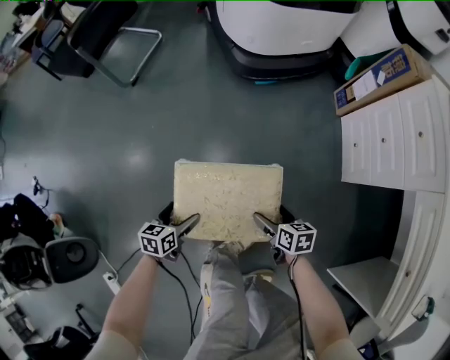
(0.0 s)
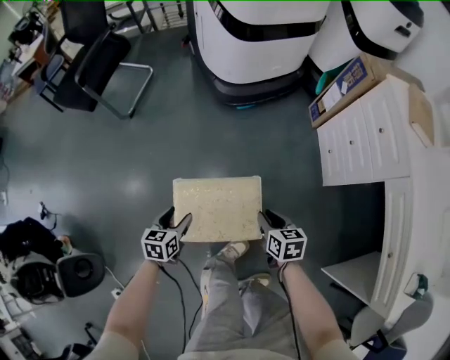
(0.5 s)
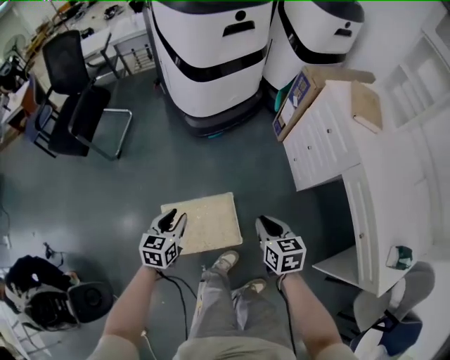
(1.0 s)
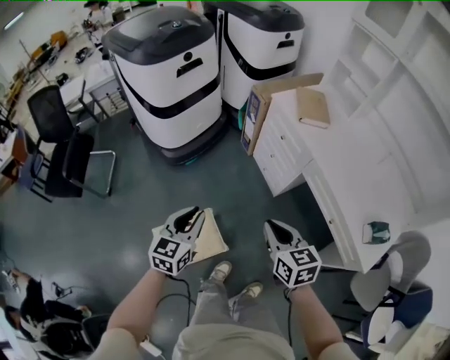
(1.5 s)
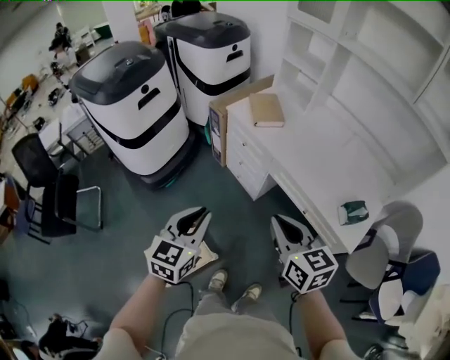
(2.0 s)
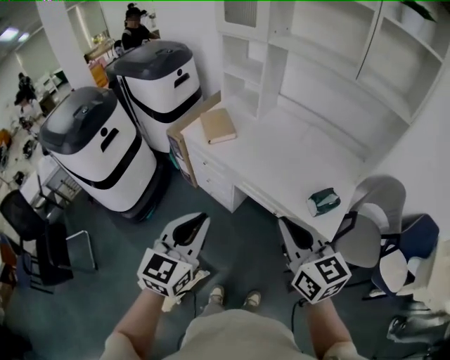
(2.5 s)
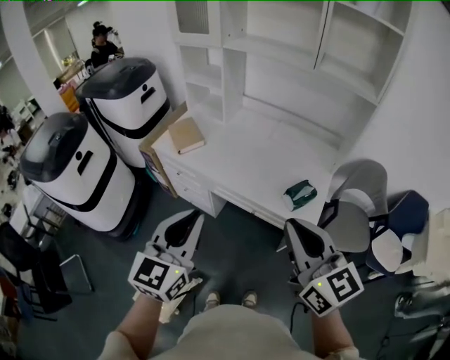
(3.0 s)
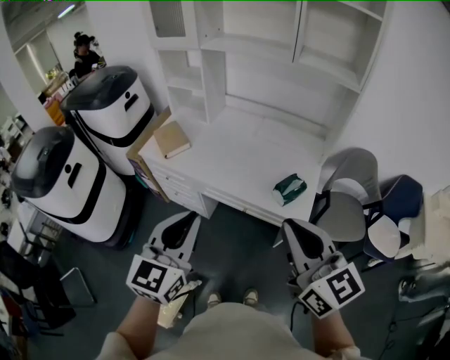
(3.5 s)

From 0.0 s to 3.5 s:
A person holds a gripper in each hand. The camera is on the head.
From 0.0 s to 2.0 s: Both grippers move upward, some 70 cm. The right gripper tips its fingers upward by approximately 30 degrees, and closes up, while the left gripper turns by some 60 degrees, and closes its fingers.
From 2.0 s to 3.5 s: The grippers both shift to the right and upward by approximately 30 cm. The right gripper swivels some 30 degrees, while the left gripper turns by roughly 30 degrees.

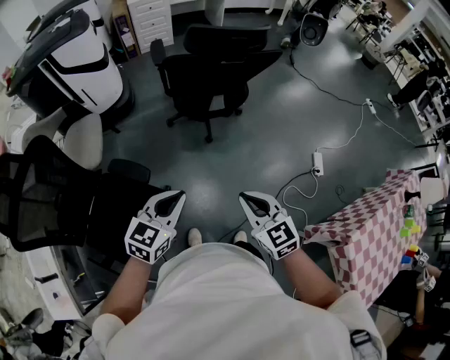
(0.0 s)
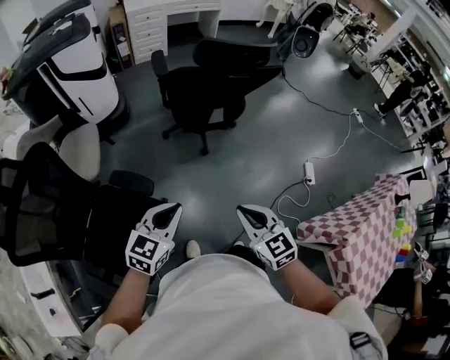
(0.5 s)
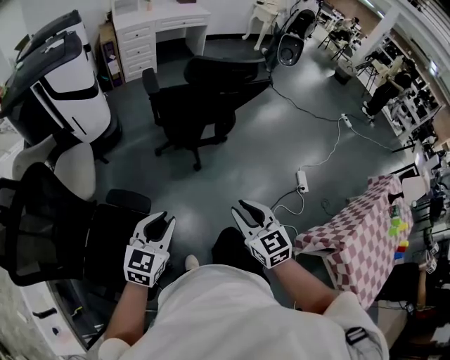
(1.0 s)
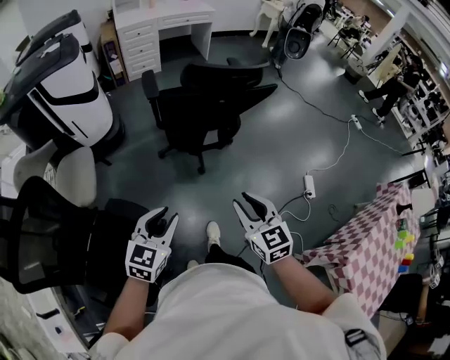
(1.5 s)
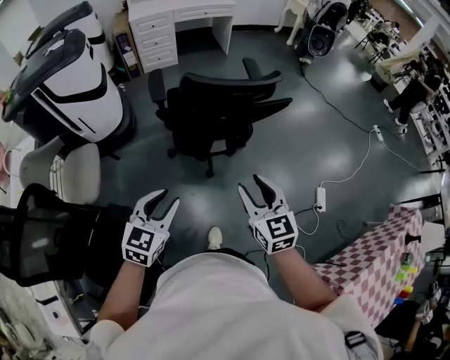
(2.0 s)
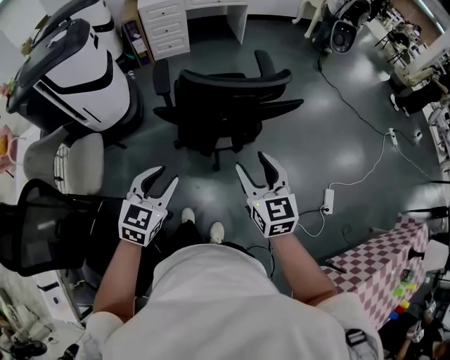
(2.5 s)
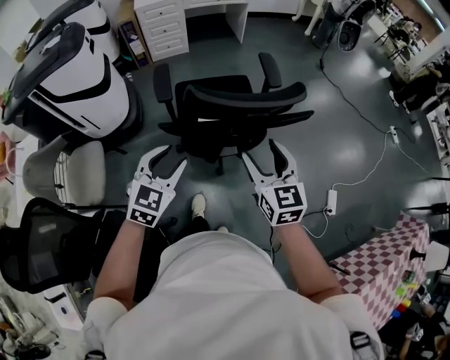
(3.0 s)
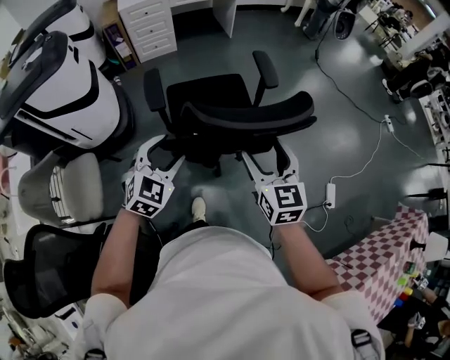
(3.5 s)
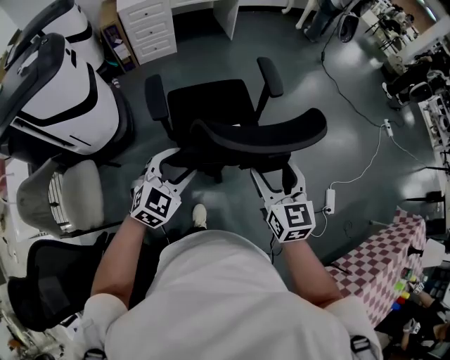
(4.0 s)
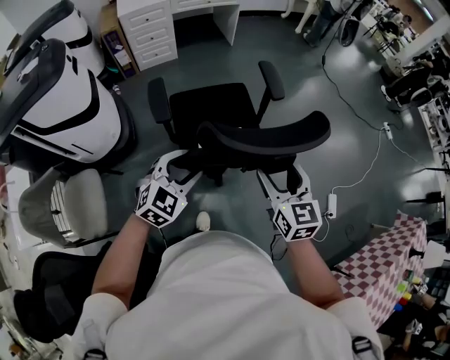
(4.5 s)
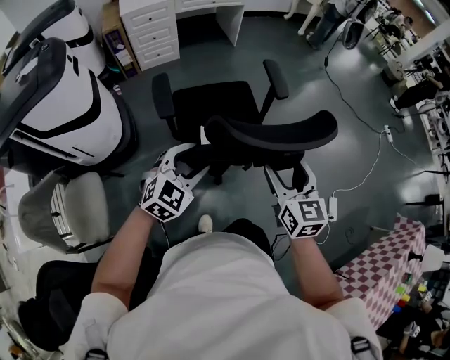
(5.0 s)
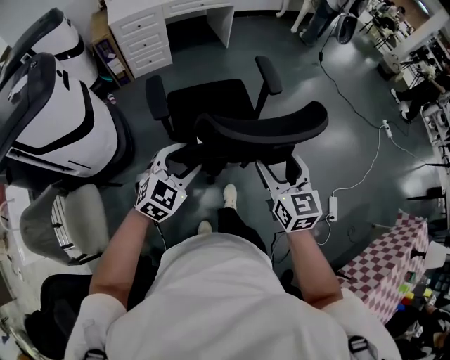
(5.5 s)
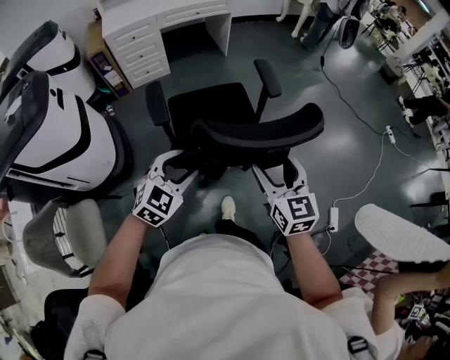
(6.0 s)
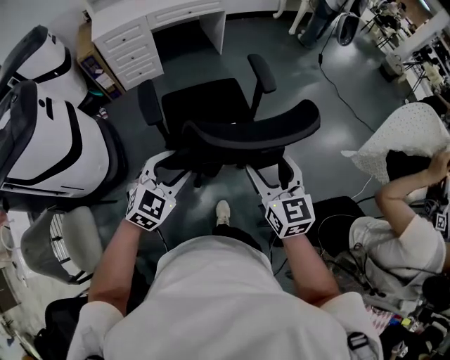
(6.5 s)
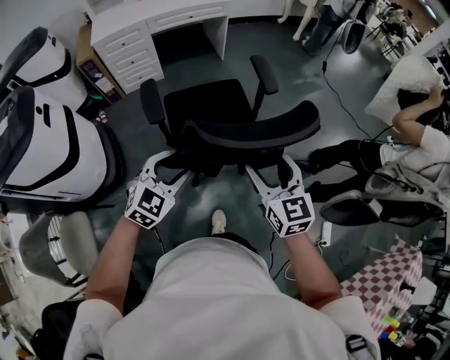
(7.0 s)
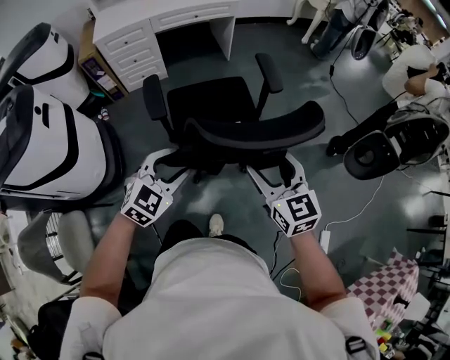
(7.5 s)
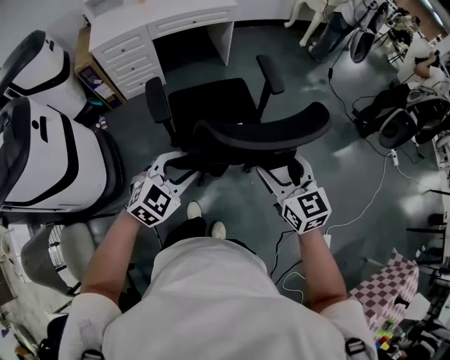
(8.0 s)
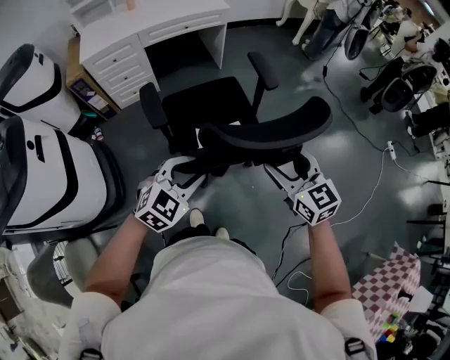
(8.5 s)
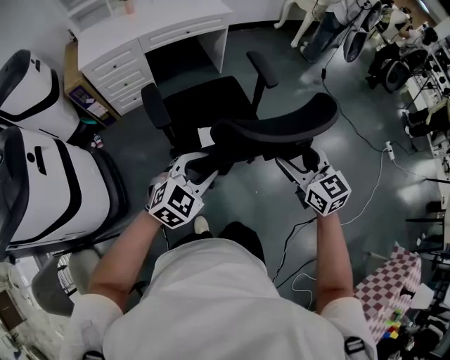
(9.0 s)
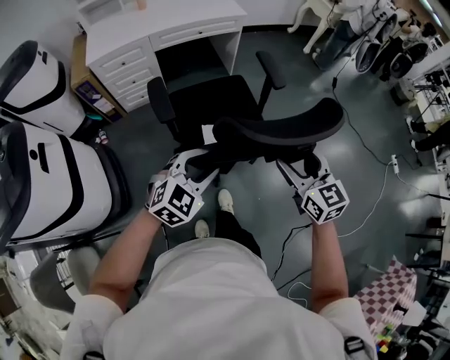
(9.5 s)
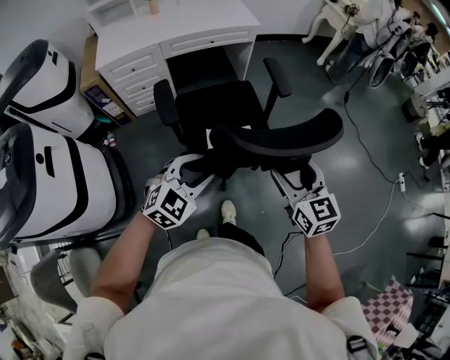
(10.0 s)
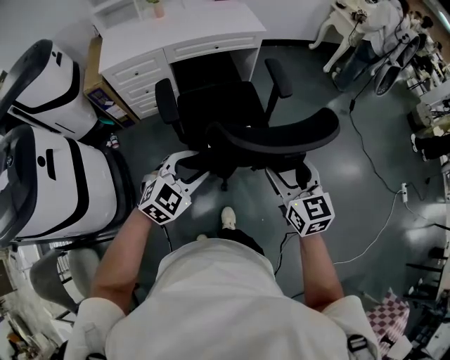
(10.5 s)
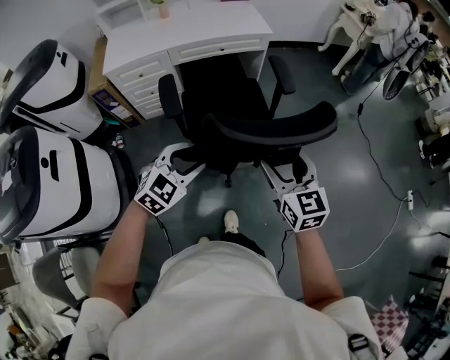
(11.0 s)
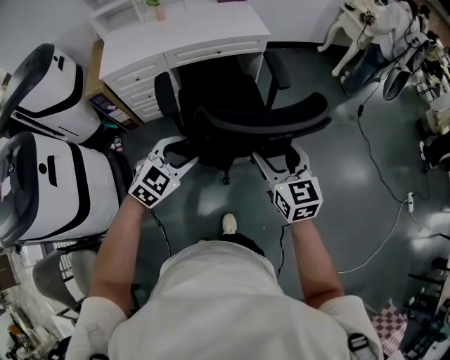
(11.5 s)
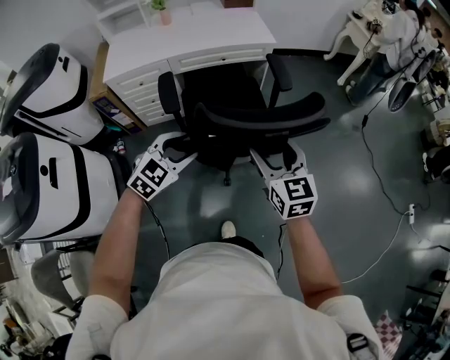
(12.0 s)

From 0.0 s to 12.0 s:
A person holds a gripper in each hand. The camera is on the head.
From 0.0 s to 2.0 s: The two grippers go some 25 cm forward. The left gripper opens; the right gripper opens its fingers.
From 2.0 s to 4.0 s: Both grippers move forward, approximately 25 cm. The right gripper opens; the left gripper swivels about 30 degrees, and opens its fingers.
From 4.0 s to 6.0 s: The two grippers go roughly 20 cm forward.
From 6.0 s to 8.0 s: Both grippers travel together forward, some 20 cm.
From 8.0 s to 10.0 s: The two grippers go approximately 20 cm forward.
From 10.0 s to 12.0 s: Both grippers travel together forward, roughly 20 cm.

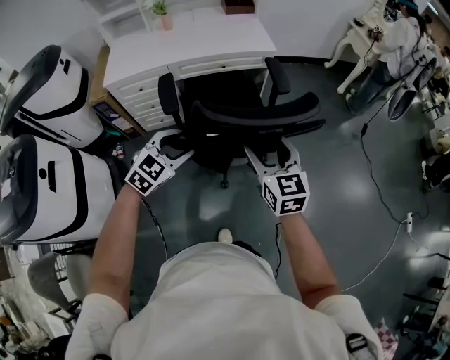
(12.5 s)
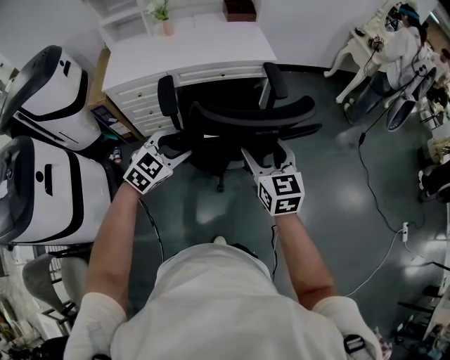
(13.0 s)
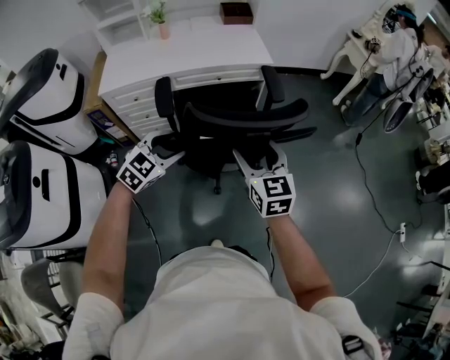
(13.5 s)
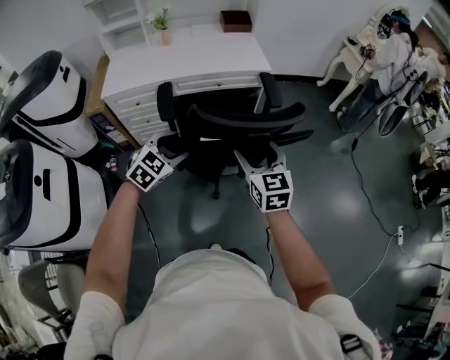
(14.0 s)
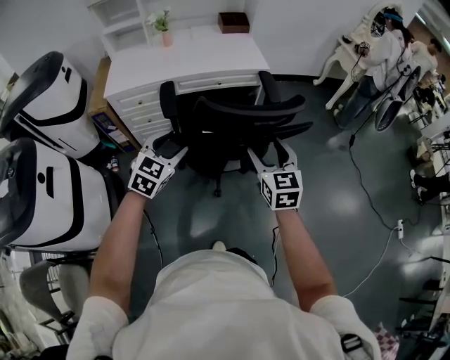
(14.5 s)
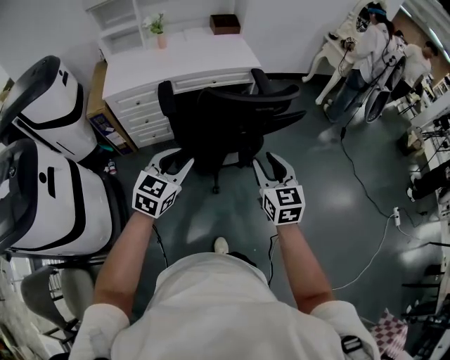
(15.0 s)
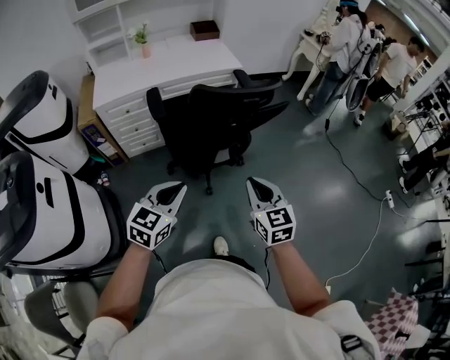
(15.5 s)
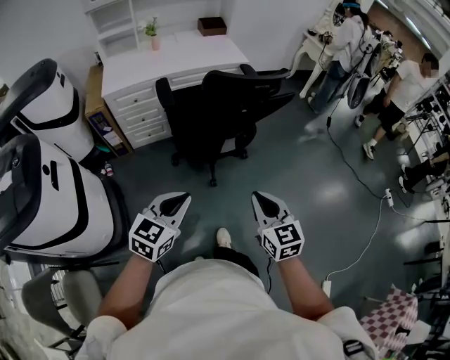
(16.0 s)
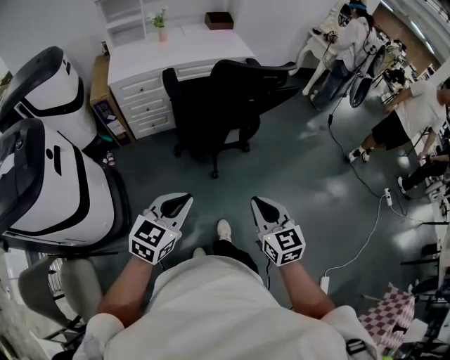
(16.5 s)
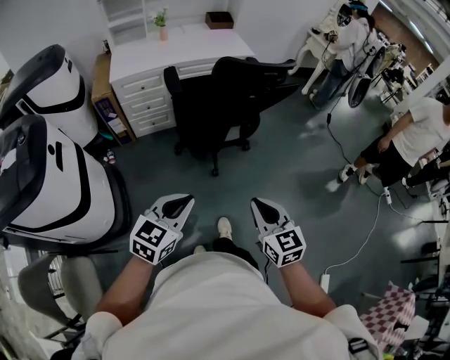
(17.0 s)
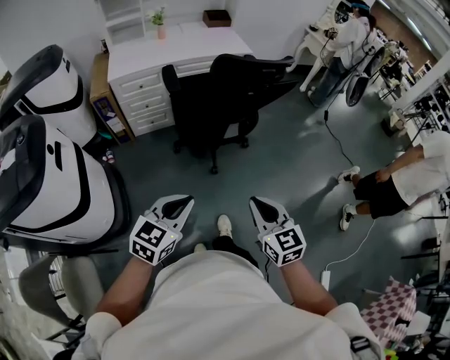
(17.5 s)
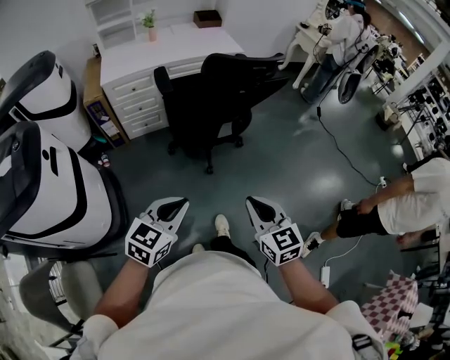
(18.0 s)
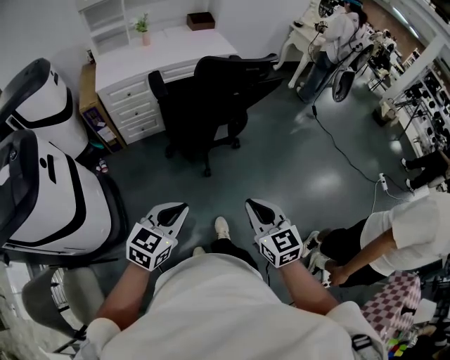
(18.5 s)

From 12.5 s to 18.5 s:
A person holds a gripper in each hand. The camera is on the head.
From 12.5 s to 14.5 s: The left gripper shifts by some 5 cm.
From 14.5 s to 16.5 s: Both grippers move backward, some 35 cm. The left gripper changes its angle by some 20 degrees, and closes up. The right gripper closes up.
From 16.5 s to 18.5 s: The grippers stay close to where they were, moving slightly.

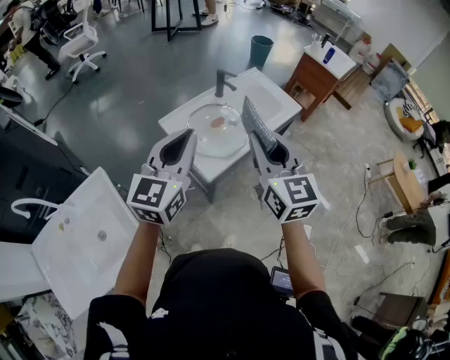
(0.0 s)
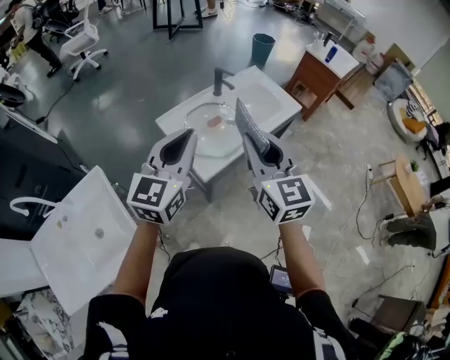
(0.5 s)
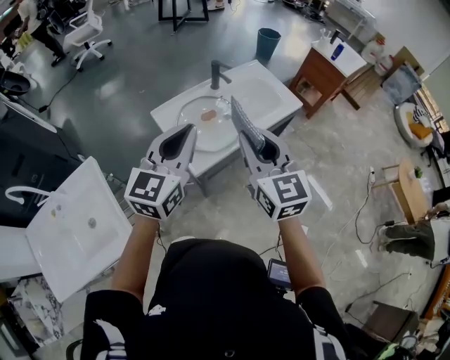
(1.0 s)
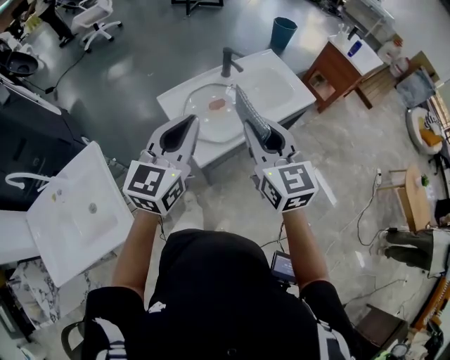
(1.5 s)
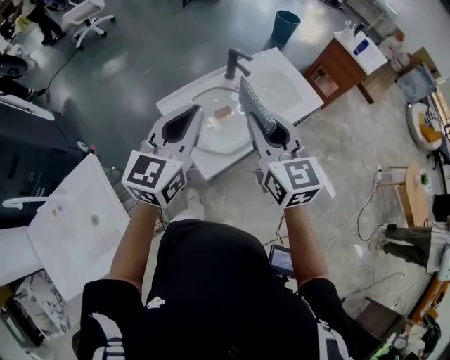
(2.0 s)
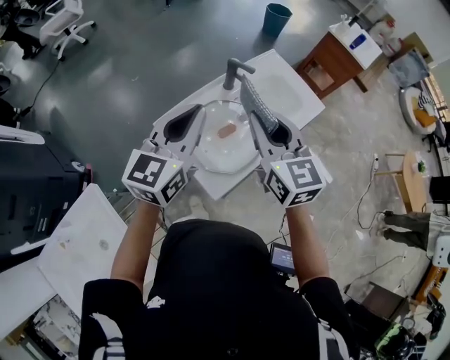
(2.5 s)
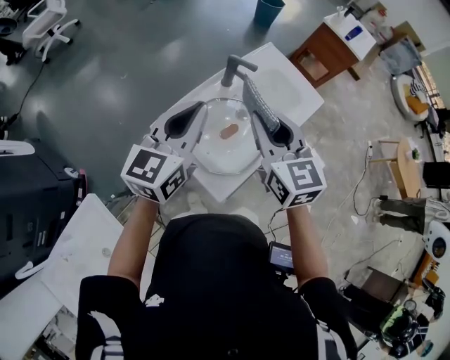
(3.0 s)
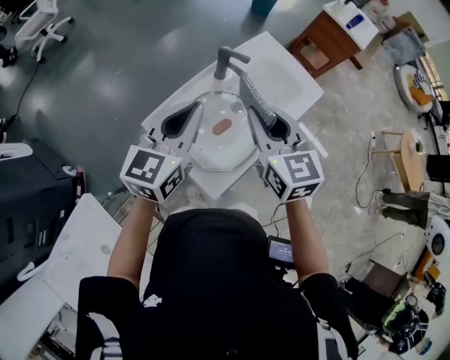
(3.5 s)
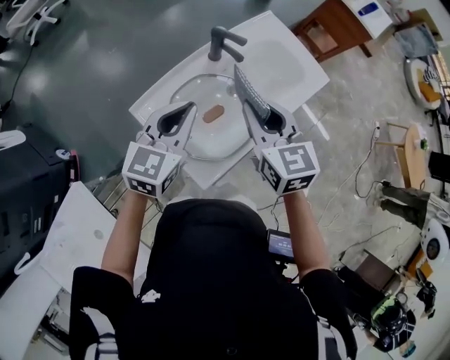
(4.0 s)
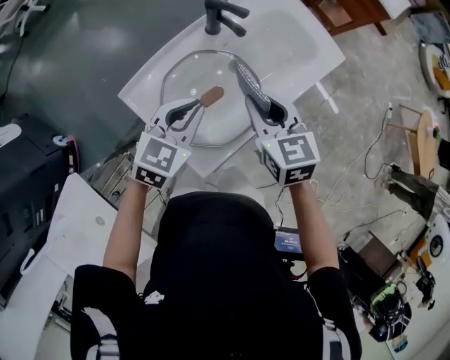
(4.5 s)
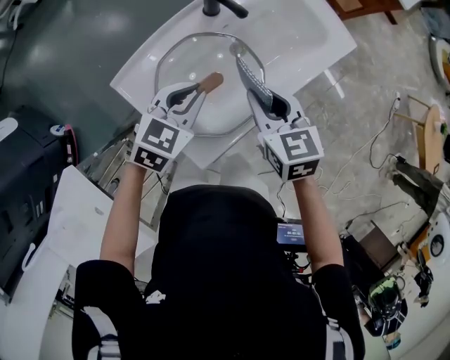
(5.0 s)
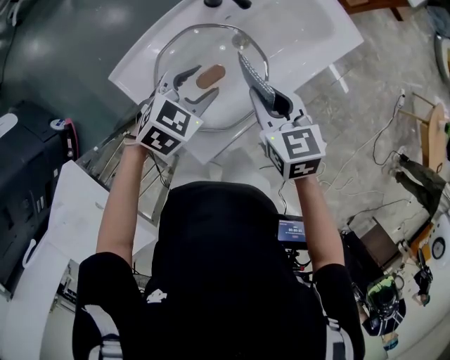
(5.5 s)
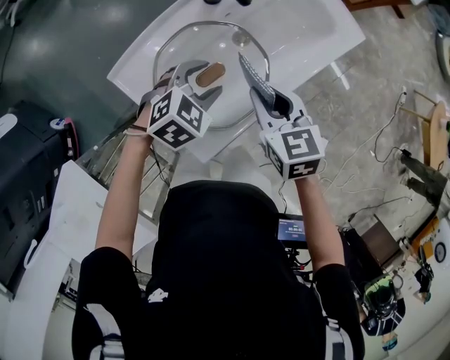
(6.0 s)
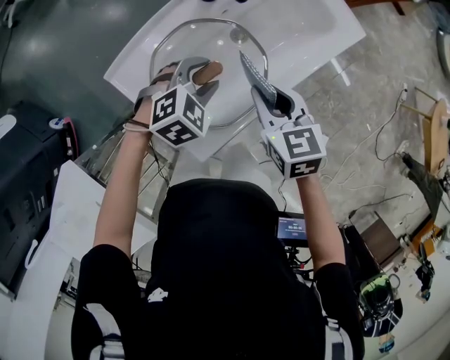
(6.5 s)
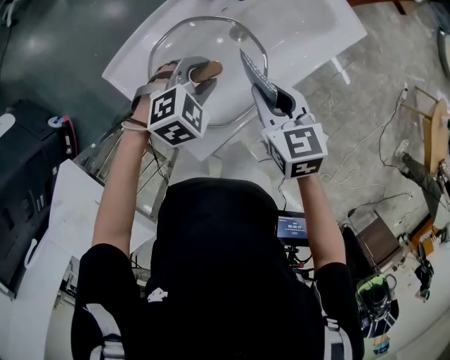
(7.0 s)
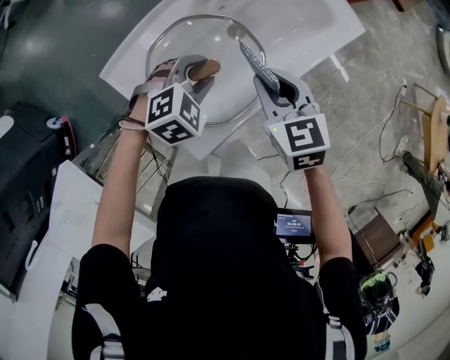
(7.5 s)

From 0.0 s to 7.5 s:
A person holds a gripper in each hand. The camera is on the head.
From 0.0 s to 2.0 s: The left gripper goes some 15 cm forward. The right gripper moves forward and downward, approximately 15 cm.
From 2.0 s to 4.0 s: Both grippers travel together forward and downward, roughly 20 cm.
From 4.0 s to 5.5 s: The grippers both shift downward by about 15 cm. The left gripper swivels about 30 degrees, and opens up.
From 5.5 s to 7.5 s: The left gripper changes its angle by roughly 20 degrees.
